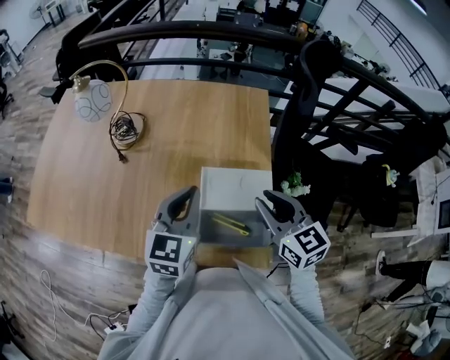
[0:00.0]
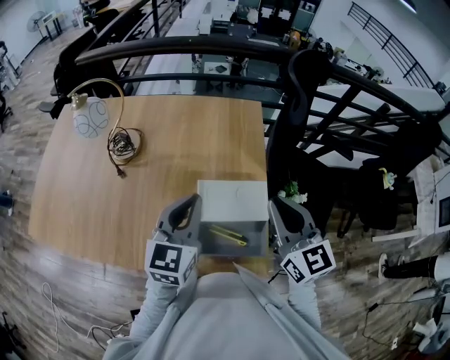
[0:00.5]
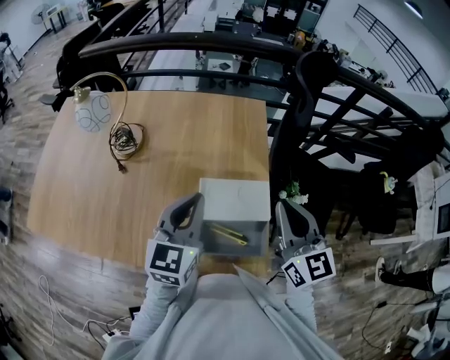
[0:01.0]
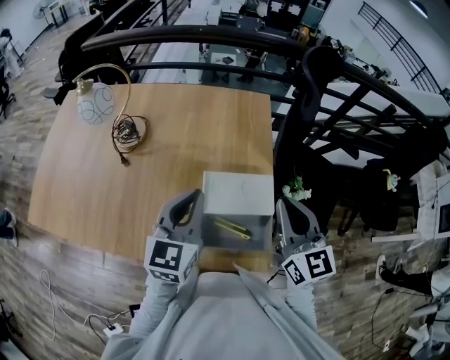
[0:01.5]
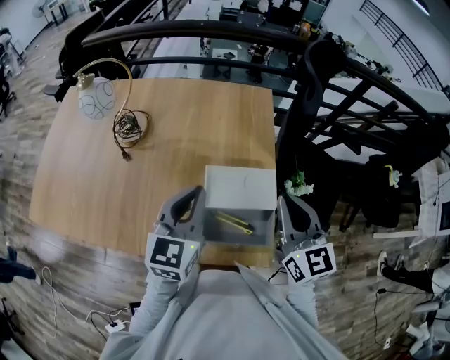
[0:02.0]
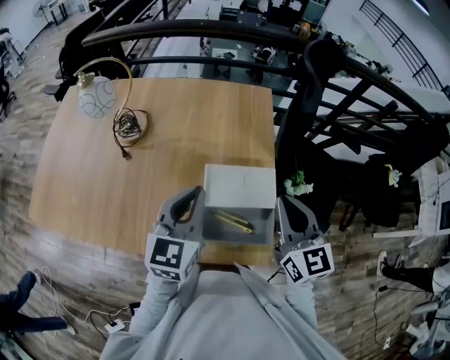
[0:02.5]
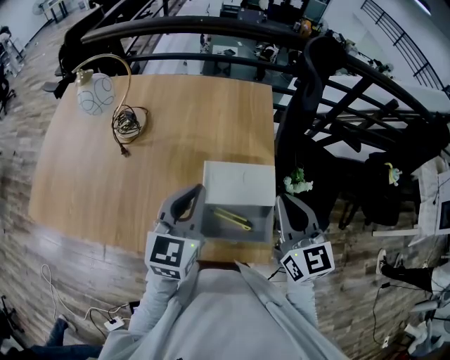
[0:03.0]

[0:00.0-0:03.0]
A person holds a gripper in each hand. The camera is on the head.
0:00.0 to 0:01.5: The right gripper goes some 5 cm upward, and closes its fingers.
0:01.5 to 0:03.0: The grippers move only a little.

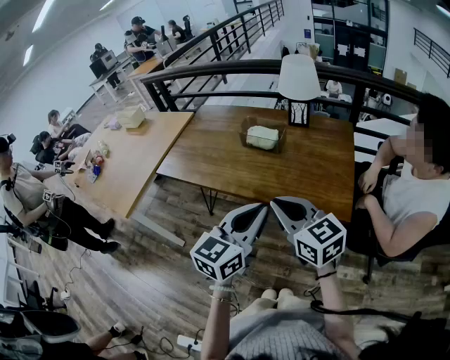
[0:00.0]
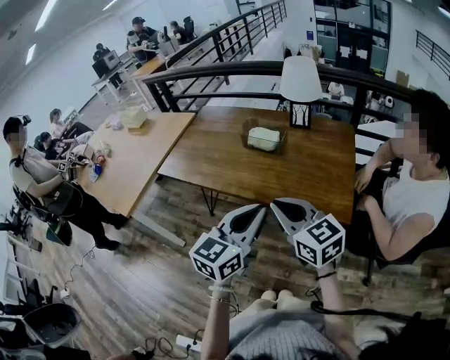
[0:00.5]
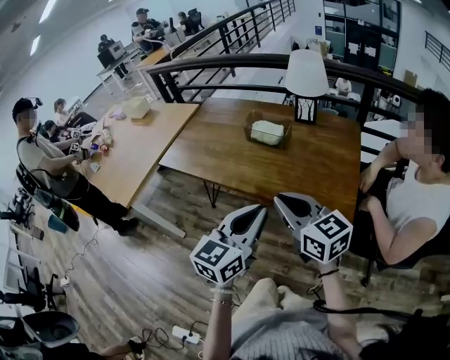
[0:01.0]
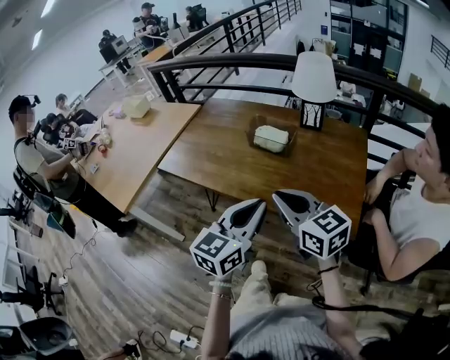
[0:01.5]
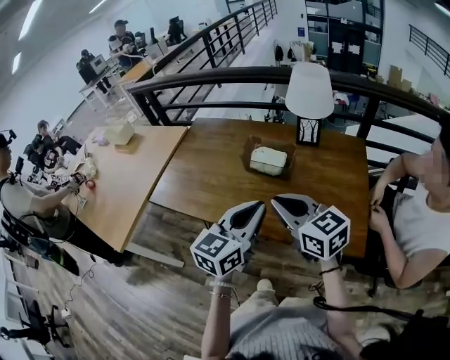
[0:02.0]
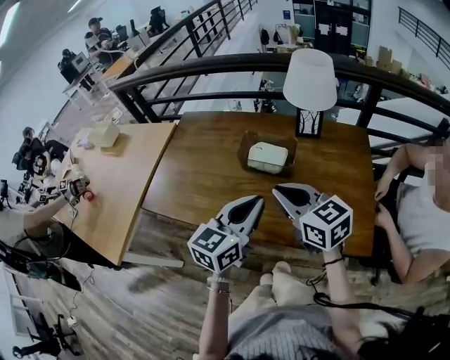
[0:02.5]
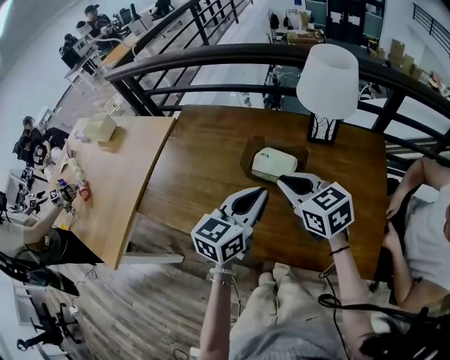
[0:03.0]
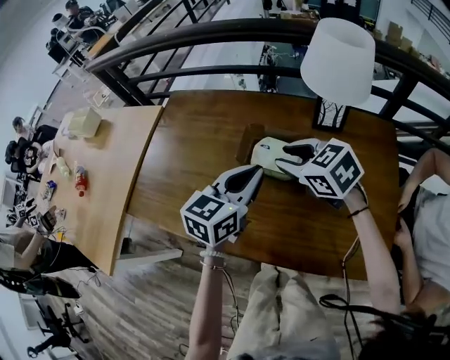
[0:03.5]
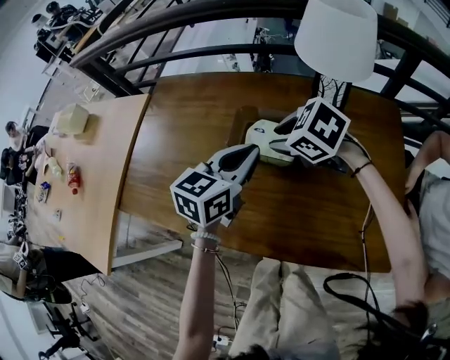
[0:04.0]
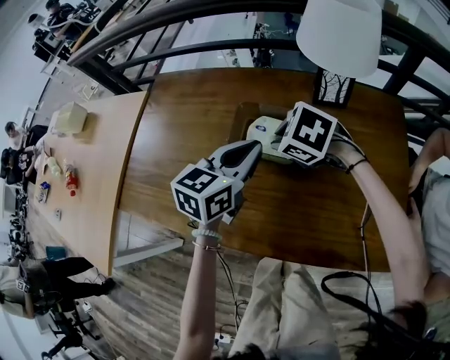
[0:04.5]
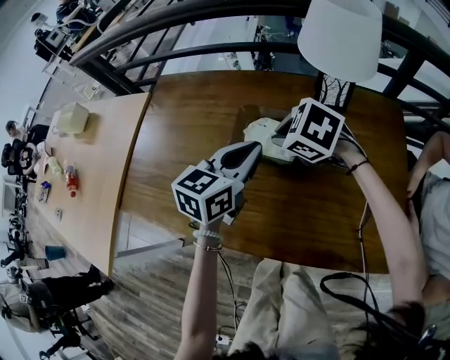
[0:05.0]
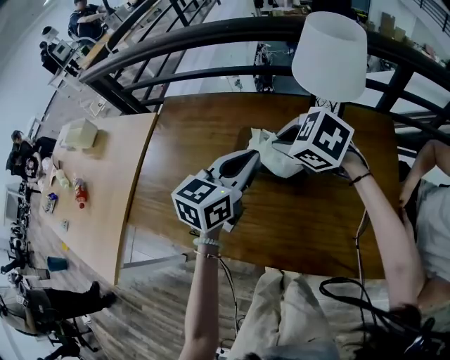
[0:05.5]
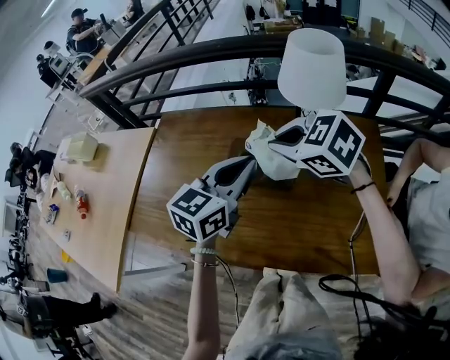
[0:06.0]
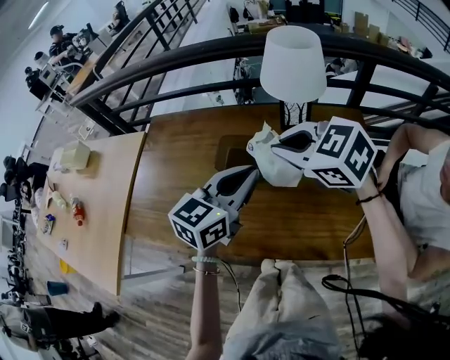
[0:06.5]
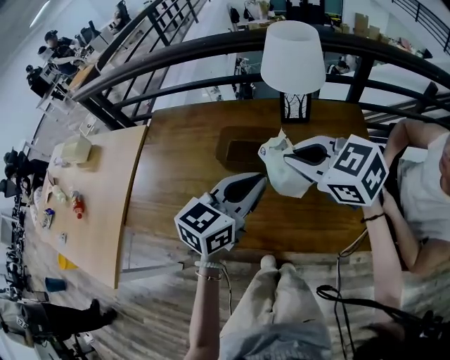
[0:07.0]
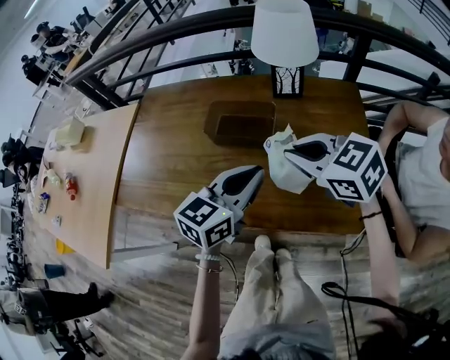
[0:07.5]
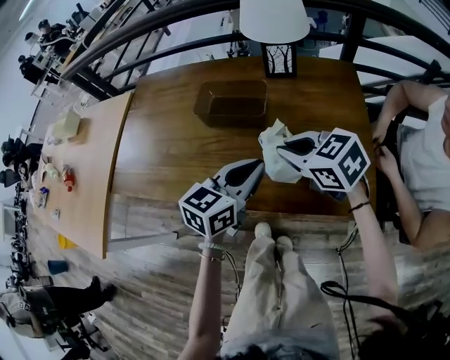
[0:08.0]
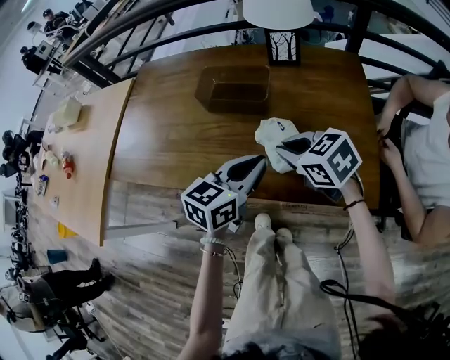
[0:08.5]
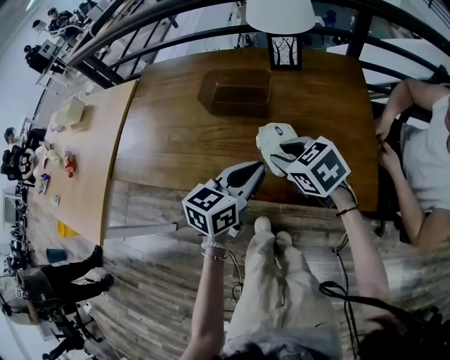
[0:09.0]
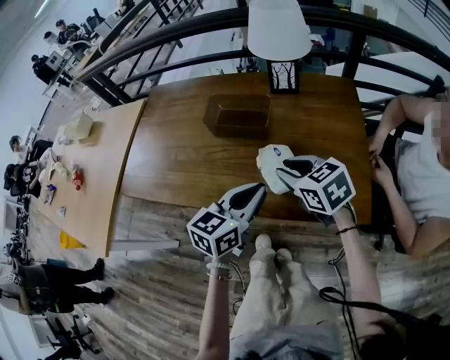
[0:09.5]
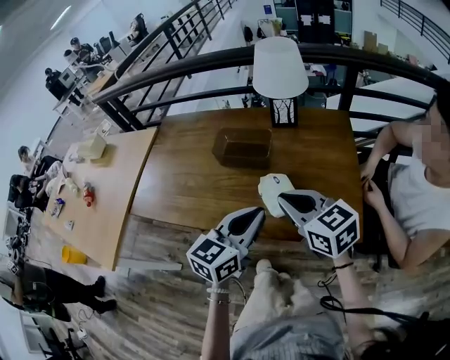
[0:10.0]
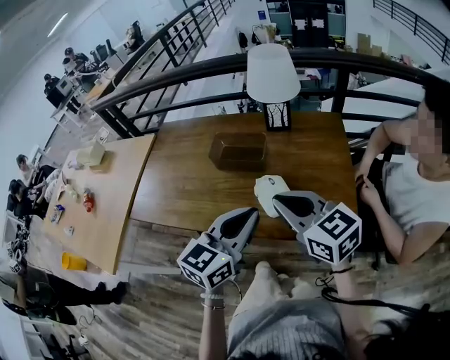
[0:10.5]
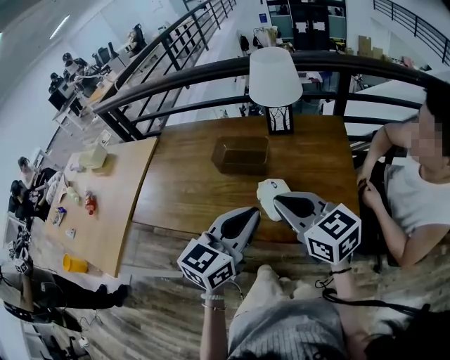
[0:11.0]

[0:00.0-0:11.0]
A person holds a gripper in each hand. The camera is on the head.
0:00.0 to 0:02.0: The two grippers go about 15 cm forward.
0:02.0 to 0:03.5: The right gripper heads forward and downward, covering roughly 25 cm, turns by roughly 30 degrees, and opens up. The left gripper is displaced forward by approximately 20 cm.
0:03.5 to 0:05.5: The right gripper reaches some 5 cm downward, then returns, and closes.
0:05.5 to 0:07.5: The right gripper goes approximately 20 cm backward and to the right, and rotates about 20 degrees; the left gripper is displaced backward by some 15 cm.
0:07.5 to 0:09.0: The two grippers go some 10 cm downward.
0:09.0 to 0:11.0: The two grippers go about 15 cm upward. The right gripper swivels approximately 30 degrees.

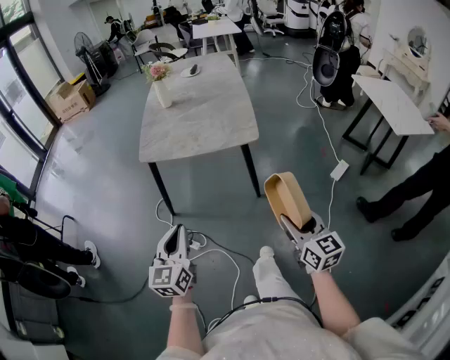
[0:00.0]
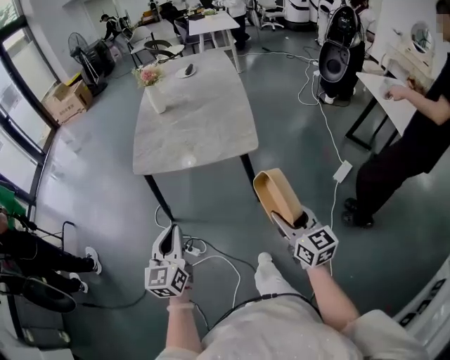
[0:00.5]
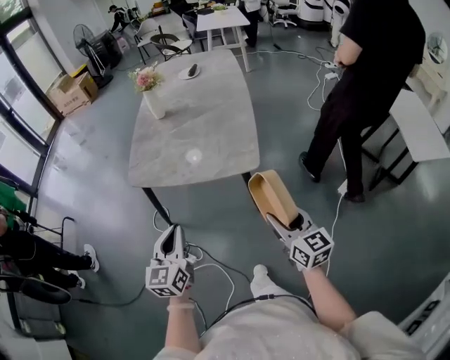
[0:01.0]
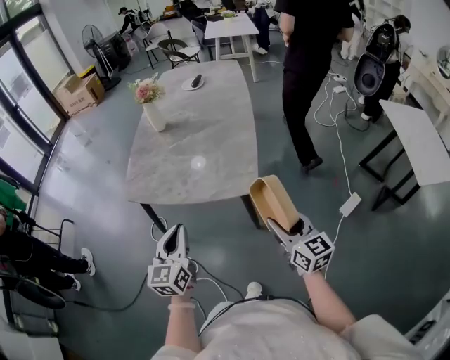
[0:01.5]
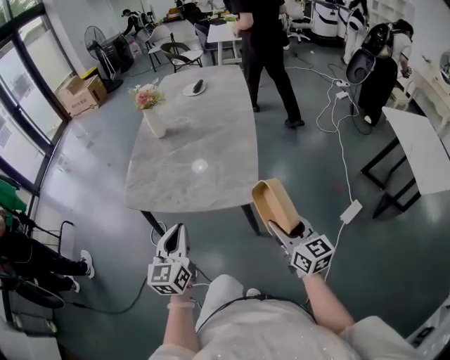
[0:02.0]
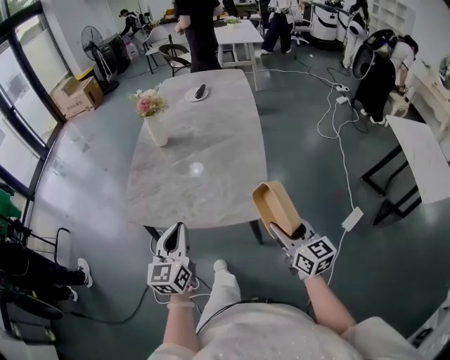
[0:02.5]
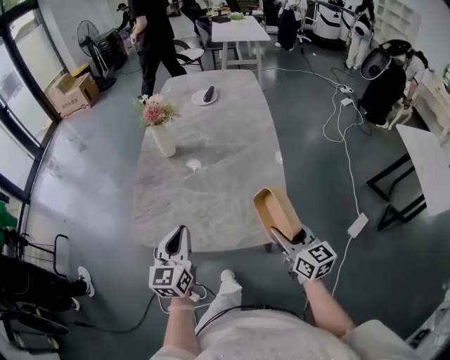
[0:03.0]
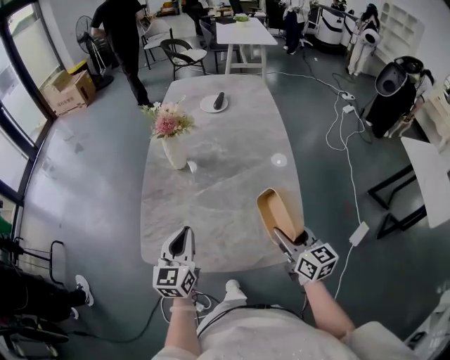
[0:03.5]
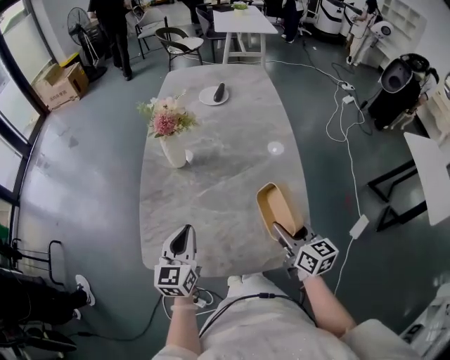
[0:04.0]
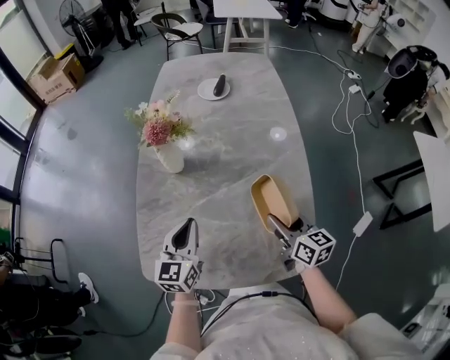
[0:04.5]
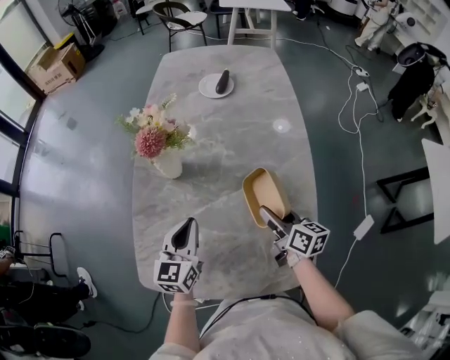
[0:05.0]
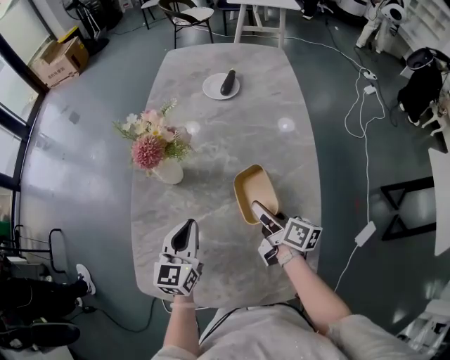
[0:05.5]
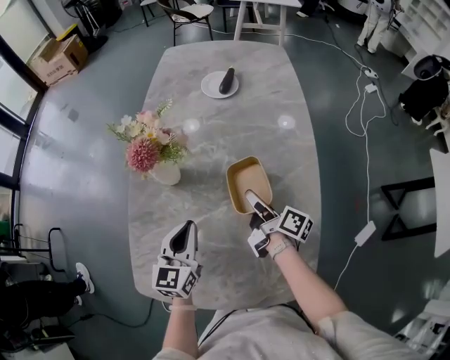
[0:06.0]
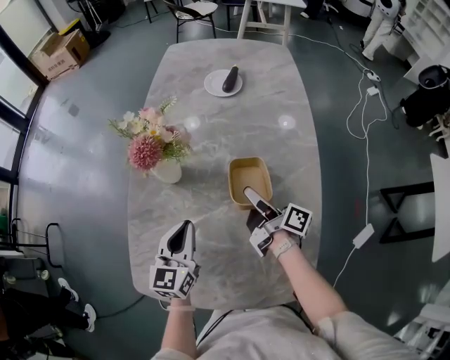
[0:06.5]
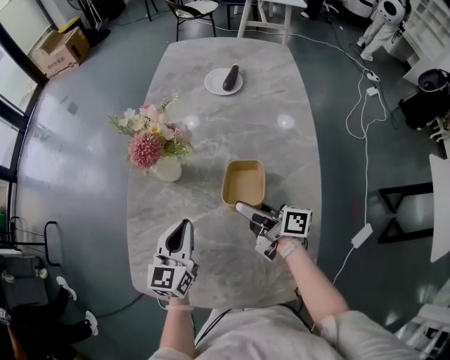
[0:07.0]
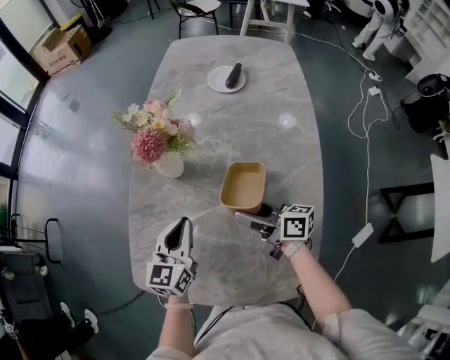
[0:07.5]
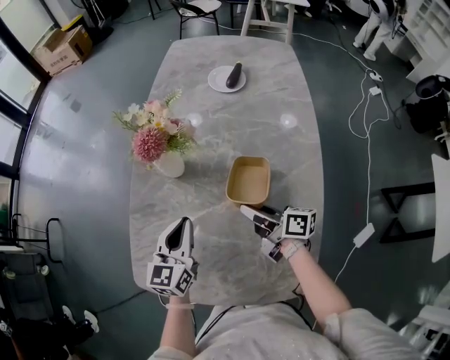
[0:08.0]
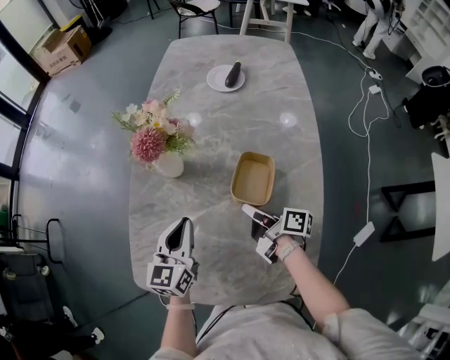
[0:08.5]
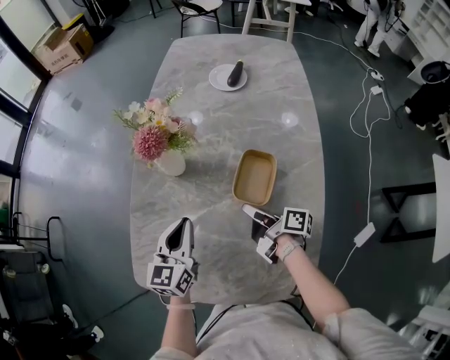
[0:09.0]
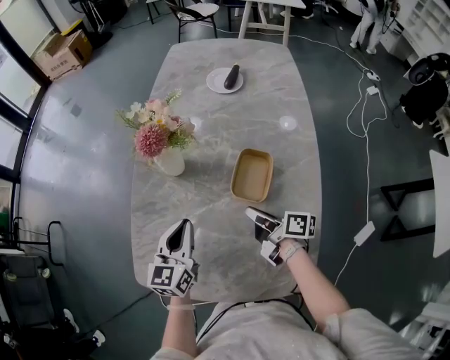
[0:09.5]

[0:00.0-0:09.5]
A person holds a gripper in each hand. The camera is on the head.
0:00.0 to 0:02.0: The grippers both shift forward and to the right by roughly 30 cm.
0:02.0 to 0:04.0: The grippers both shift forward and to the left by approximately 30 cm.
0:04.0 to 0:05.5: The grippers both shift forward by about 15 cm. The right gripper swivels about 40 degrees.
0:05.5 to 0:07.5: The right gripper goes about 5 cm to the left, and turns by about 30 degrees.
0:07.5 to 0:09.5: The right gripper shifts by some 5 cm, swivels some 20 degrees, and closes.

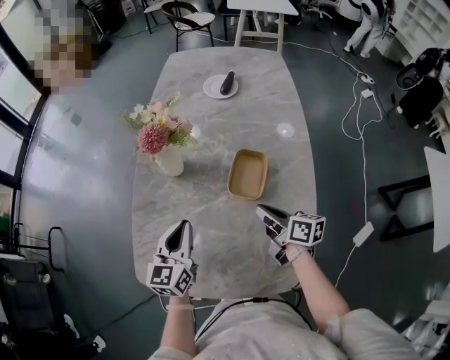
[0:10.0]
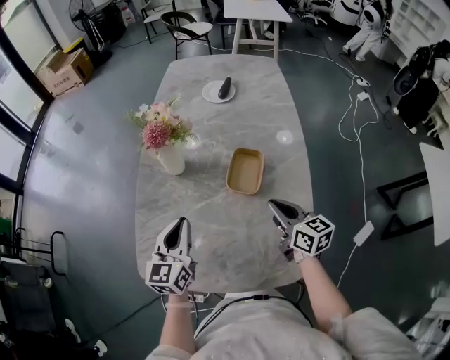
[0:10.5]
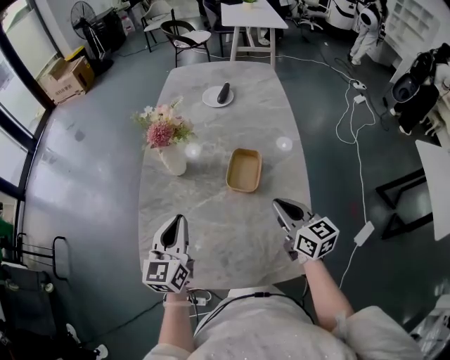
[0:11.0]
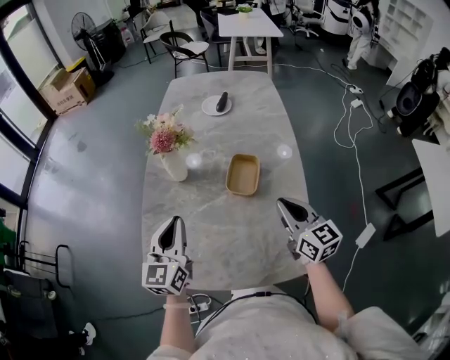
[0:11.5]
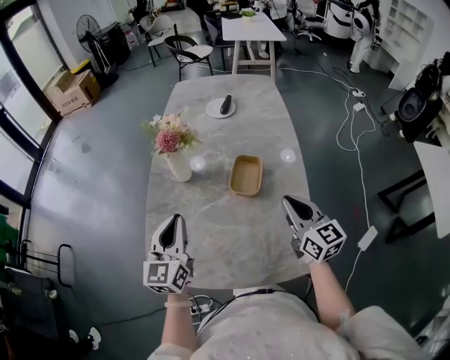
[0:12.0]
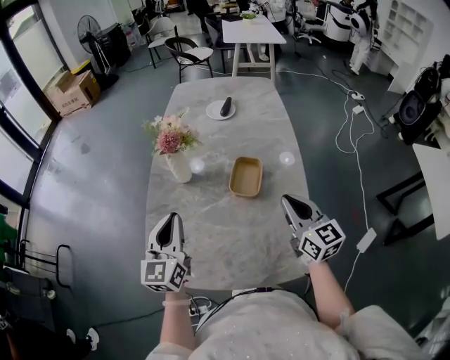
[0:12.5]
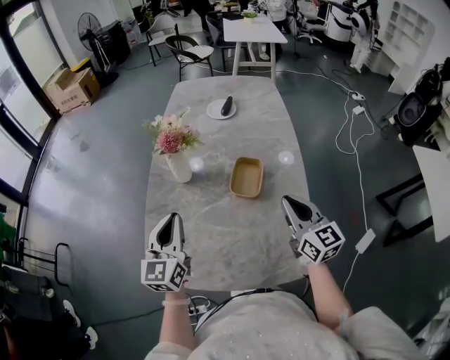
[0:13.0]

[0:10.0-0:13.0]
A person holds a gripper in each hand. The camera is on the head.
0:10.0 to 0:11.5: The right gripper moves upward and backward, some 15 cm, and rolls counterclockwise, seen from behind, by about 40 degrees. The left gripper goes some 10 cm upward.
0:11.5 to 0:13.0: The grippers move only a little.
